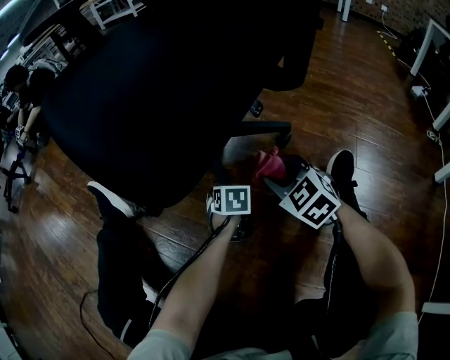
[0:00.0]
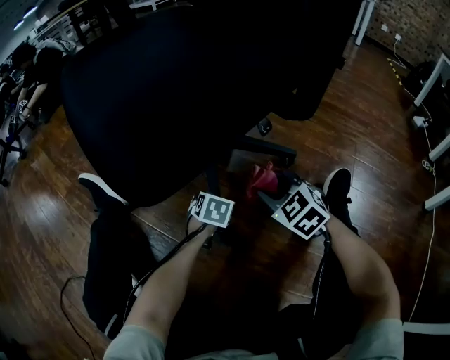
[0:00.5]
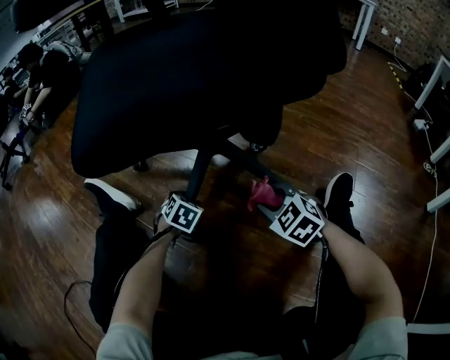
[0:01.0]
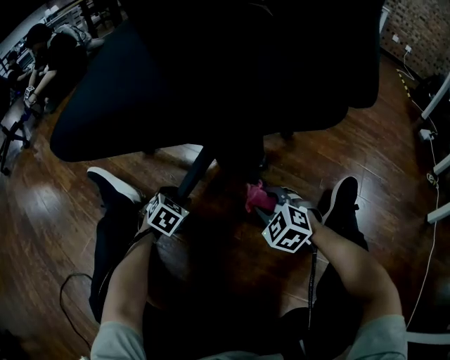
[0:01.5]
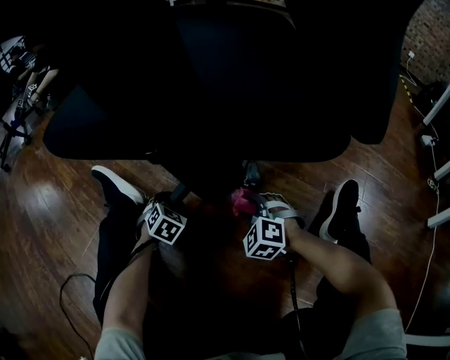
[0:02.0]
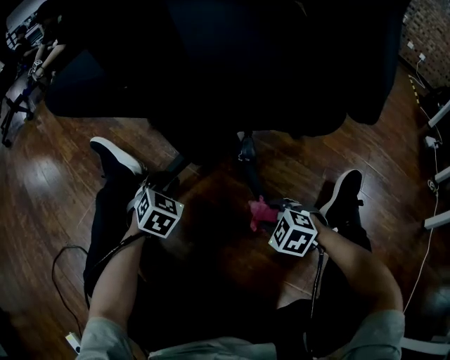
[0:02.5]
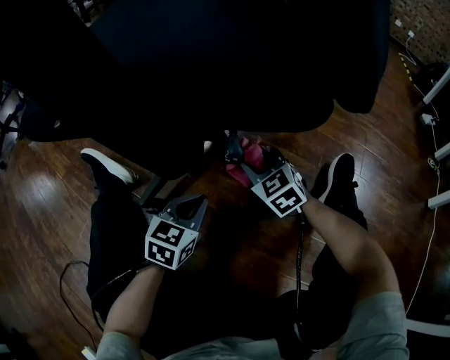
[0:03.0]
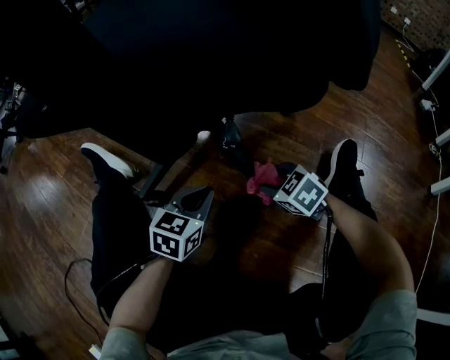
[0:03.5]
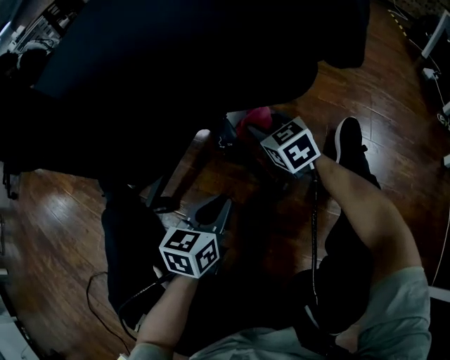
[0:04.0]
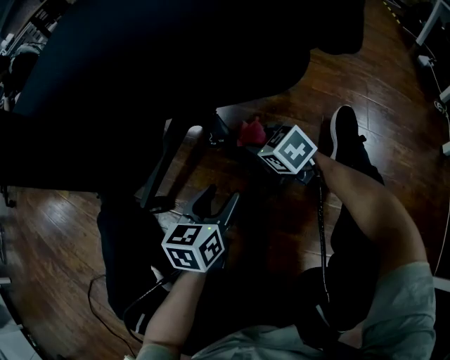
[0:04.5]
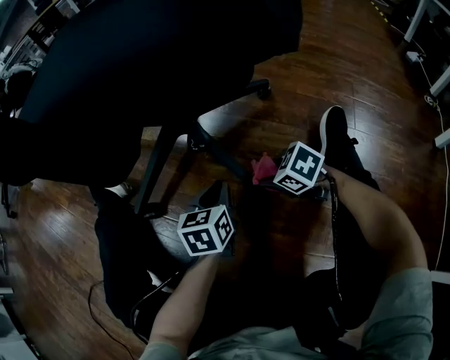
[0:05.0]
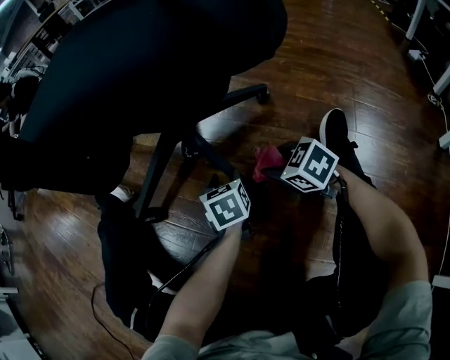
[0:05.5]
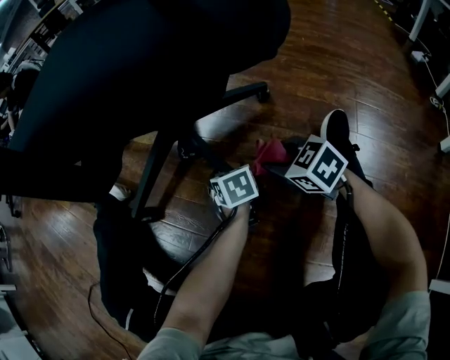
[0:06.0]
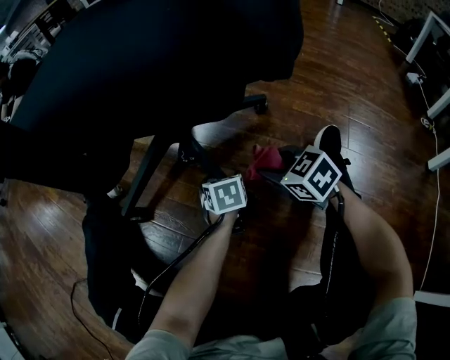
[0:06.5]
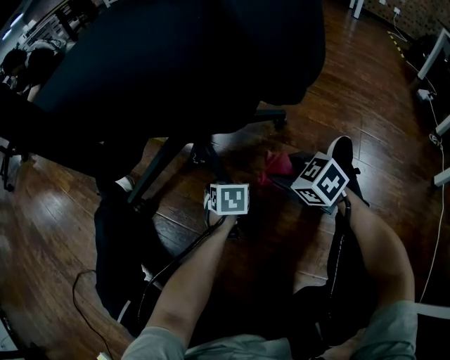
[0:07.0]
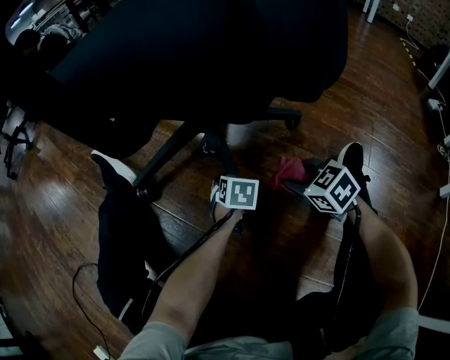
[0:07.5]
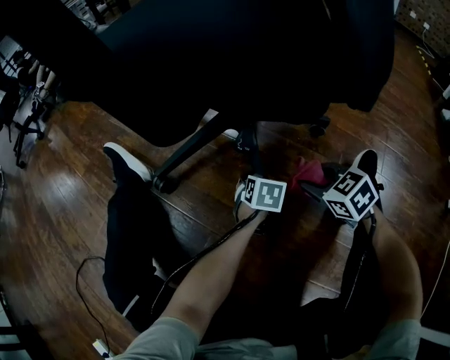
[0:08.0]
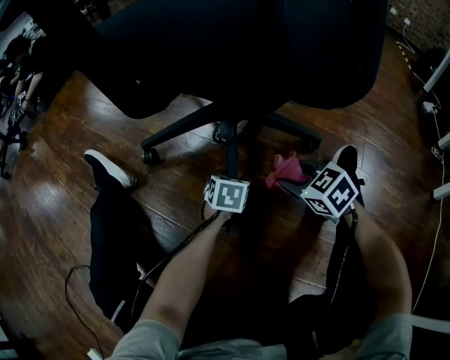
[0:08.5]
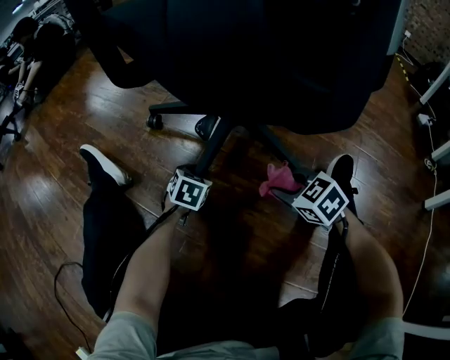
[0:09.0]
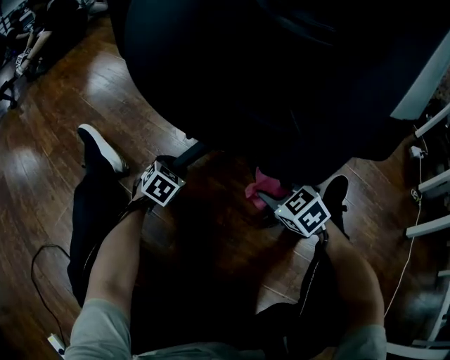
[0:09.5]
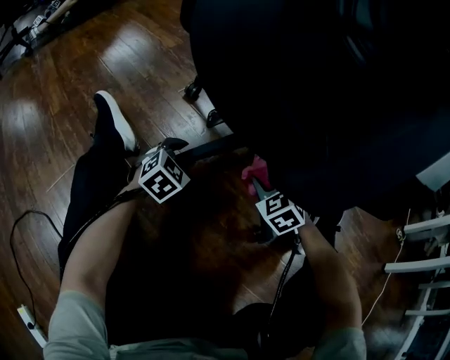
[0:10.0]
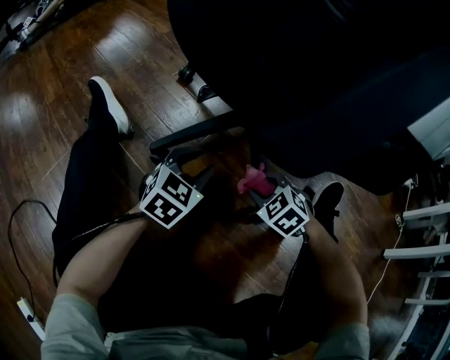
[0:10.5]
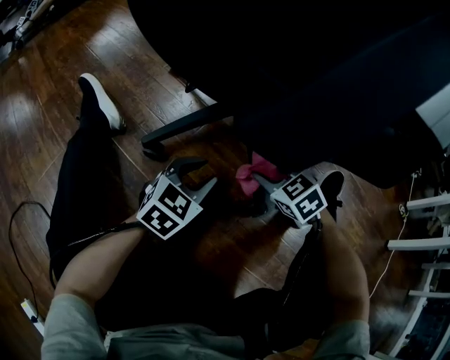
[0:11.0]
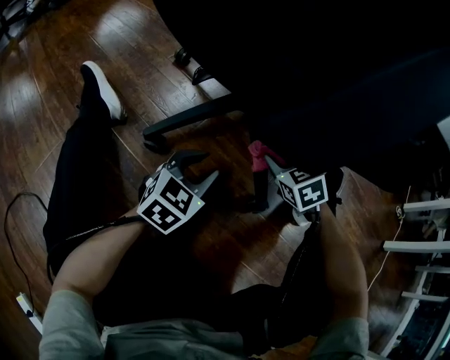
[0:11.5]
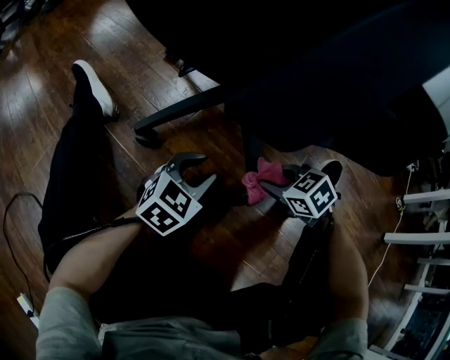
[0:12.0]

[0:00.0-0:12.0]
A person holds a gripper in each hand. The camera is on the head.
0:00.0 to 0:02.0: The left gripper heads to the left, covering about 25 cm, and swivels some 30 degrees. Meanwhile the right gripper heads to the left and downward, covering about 20 cm, and turns by some 30 degrees.
0:02.0 to 0:04.0: The right gripper swings up and down, some 10 cm each way, with 2 reversals, and rotates around the line of its fingers by about 50 degrees, clockwise from behind, while the left gripper ends up approximately 25 cm from where it was, turns by approximately 50 degrees, and closes its fingers.
0:04.0 to 0:06.0: The left gripper moves some 15 cm, changes its angle by about 40 degrees, and opens up. Meanwhile the right gripper moves about 10 cm downward and comes back, and rotates some 20 degrees.
0:06.0 to 0:08.0: There are only small adjustments of the grippers.
0:08.0 to 0:10.0: The left gripper moves to the left, roughly 20 cm, rotates roughly 30 degrees, and closes; the right gripper heads to the left and forward, covering approximately 15 cm, and turns by about 30 degrees.
0:10.0 to 0:12.0: The left gripper travels backward and to the right by roughly 20 cm. The right gripper moves forward and backward over approximately 10 cm, changing direction 2 times, and turns by some 30 degrees.

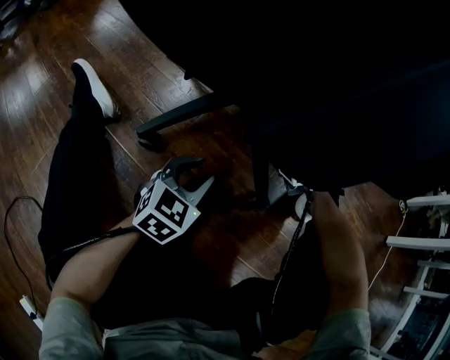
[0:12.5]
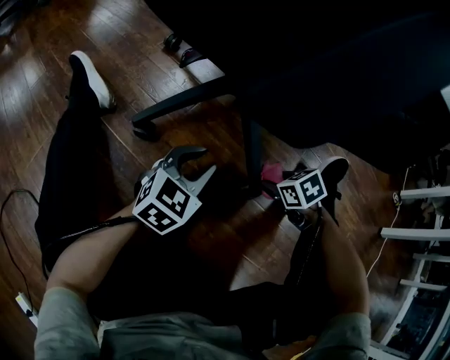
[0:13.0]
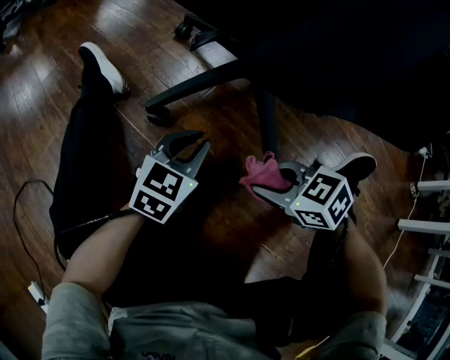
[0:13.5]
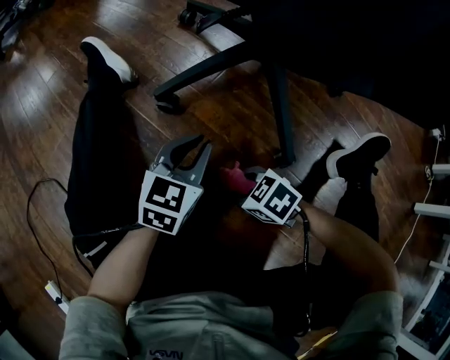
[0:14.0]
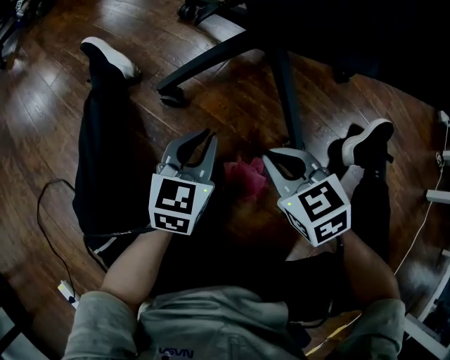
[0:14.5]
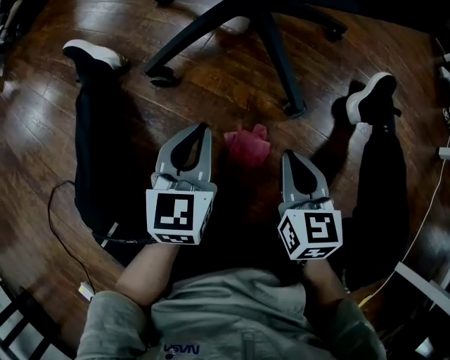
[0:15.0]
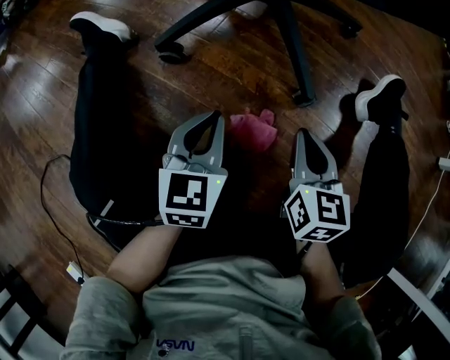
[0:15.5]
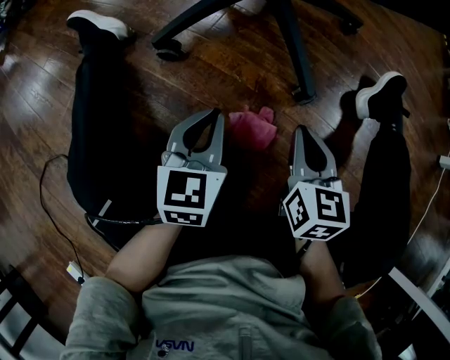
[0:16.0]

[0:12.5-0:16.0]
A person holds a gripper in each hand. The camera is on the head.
0:12.5 to 0:14.5: The right gripper moves up and down over approximately 15 cm, changing direction 3 times, and closes up, while the left gripper shifts by roughly 10 cm, and rotates approximately 20 degrees.
0:14.5 to 0:16.0: The left gripper shifts roughly 5 cm backward. Meanwhile the right gripper is displaced to the right by about 5 cm, and changes its angle by about 40 degrees.

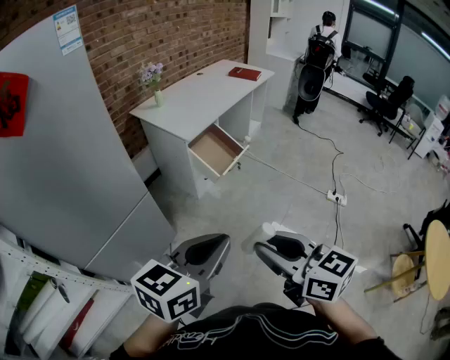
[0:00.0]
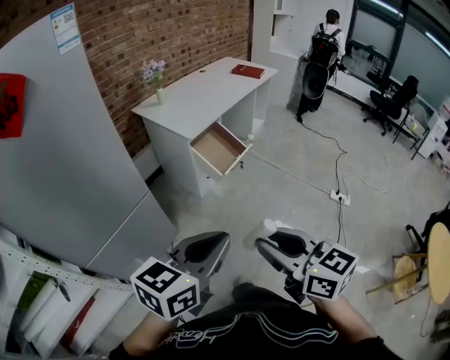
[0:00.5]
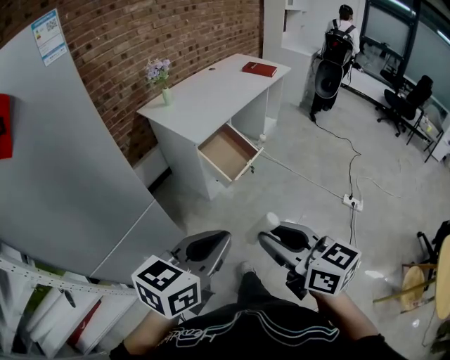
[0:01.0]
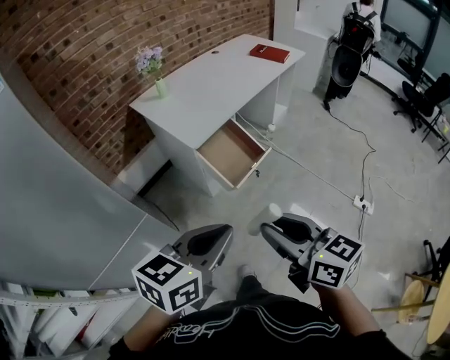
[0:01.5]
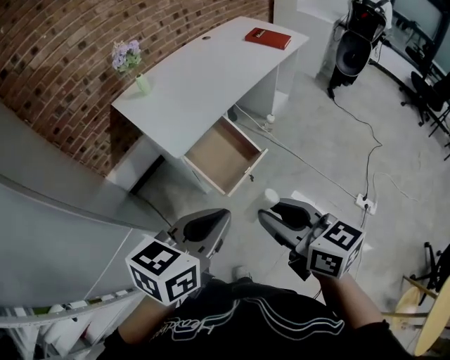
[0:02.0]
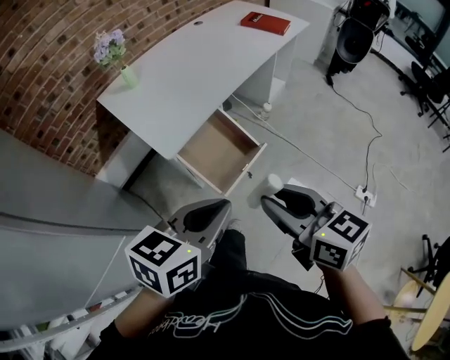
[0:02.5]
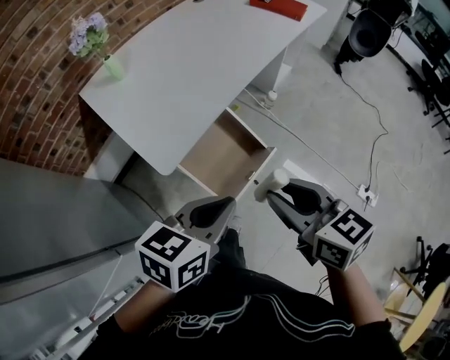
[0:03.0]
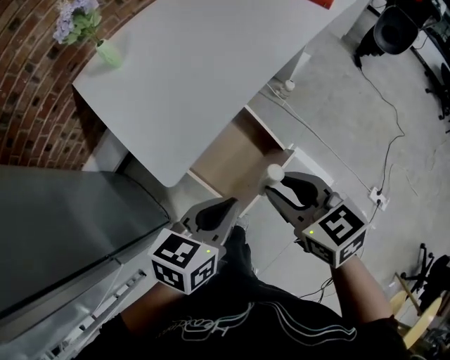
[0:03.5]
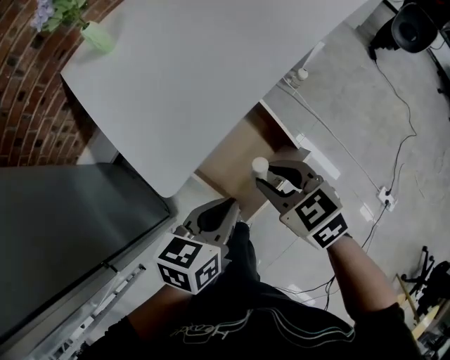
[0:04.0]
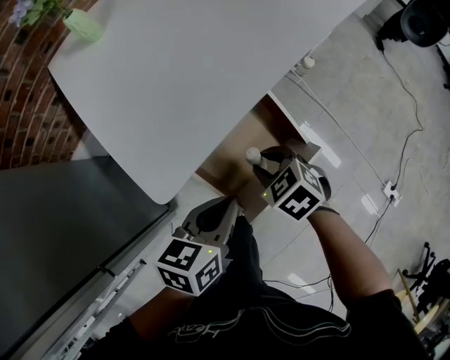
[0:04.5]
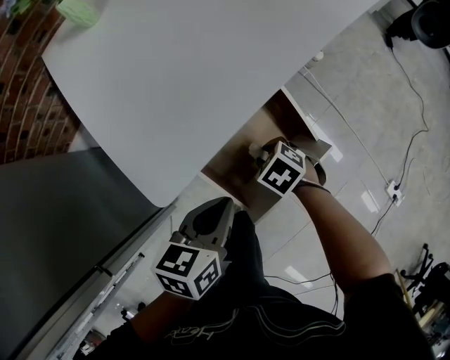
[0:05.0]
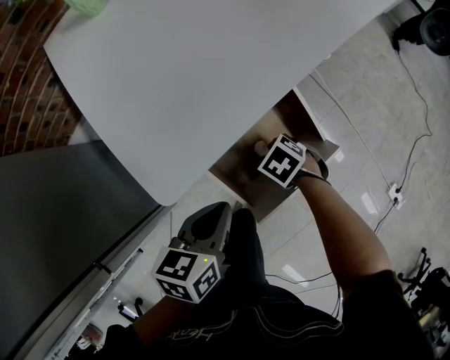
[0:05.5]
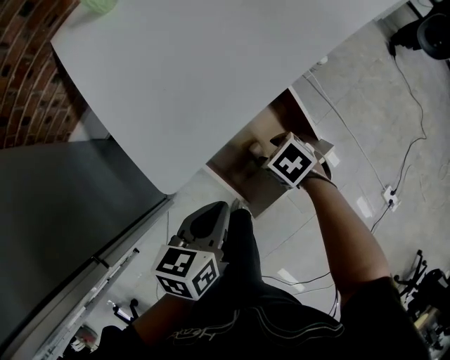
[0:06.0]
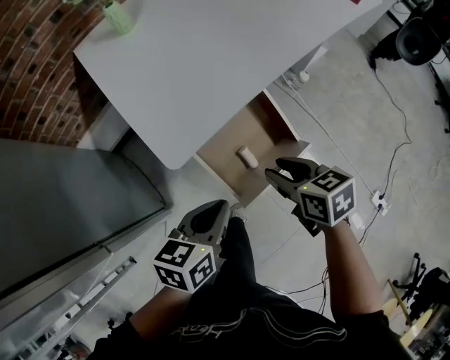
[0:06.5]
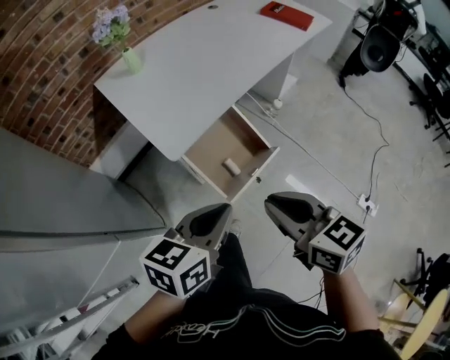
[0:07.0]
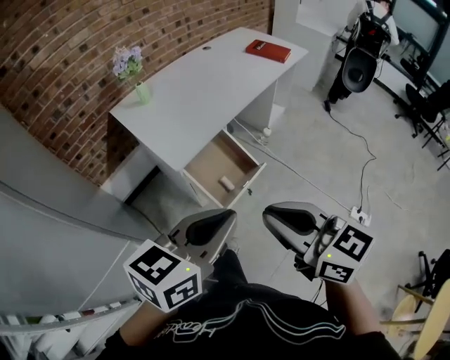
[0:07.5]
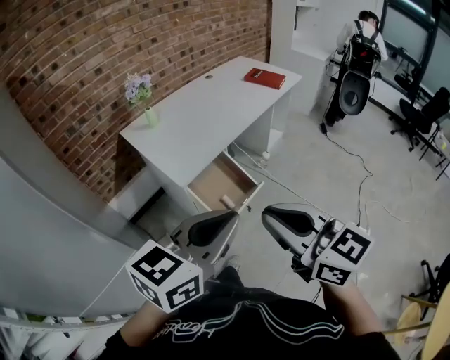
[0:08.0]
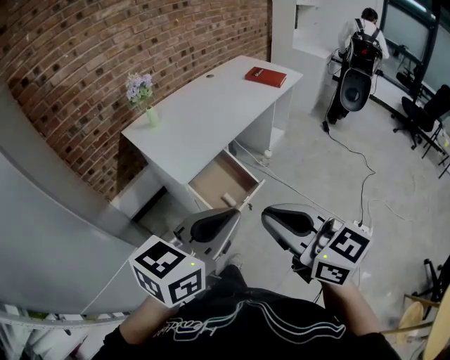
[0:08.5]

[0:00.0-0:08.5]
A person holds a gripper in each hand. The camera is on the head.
0:00.0 to 0:02.0: The pair of grippers is taken forward, approximately 50 cm.
0:02.0 to 0:04.0: The two grippers go approximately 50 cm forward and downward. The right gripper points its fingers some 30 degrees further downward; the left gripper changes its angle by approximately 20 degrees.
0:04.0 to 0:06.5: The right gripper travels downward and back again, roughly 25 cm each way, and turns by some 20 degrees. The left gripper travels downward and back again, some 10 cm each way.
0:06.5 to 0:08.5: The grippers both shift upward and backward by some 50 cm. The left gripper turns by some 40 degrees. Meanwhile the right gripper tips its fingers upward by approximately 40 degrees, and closes up.

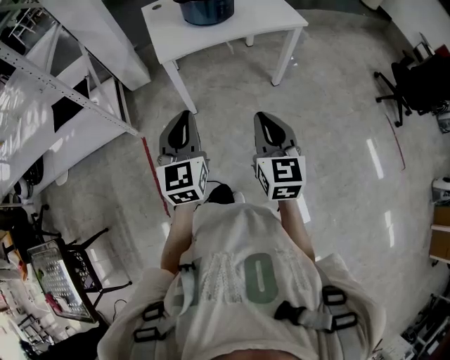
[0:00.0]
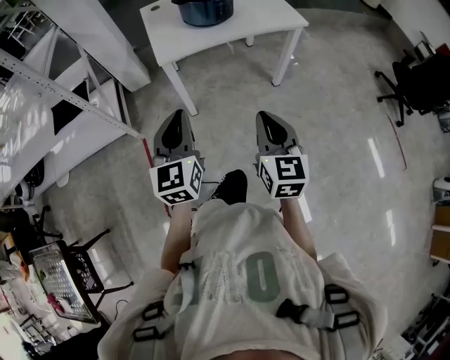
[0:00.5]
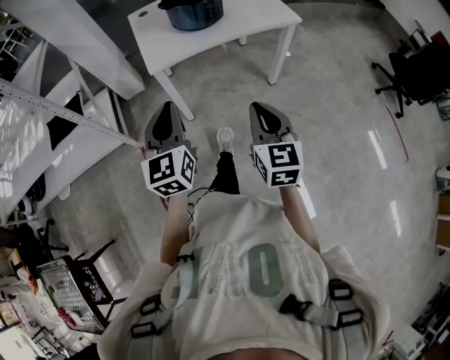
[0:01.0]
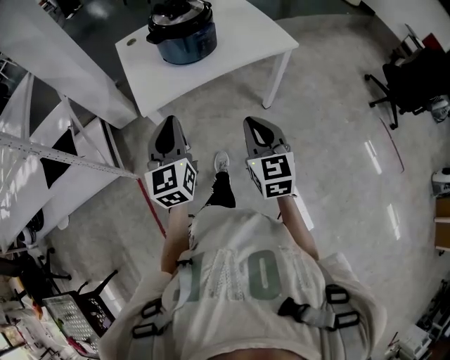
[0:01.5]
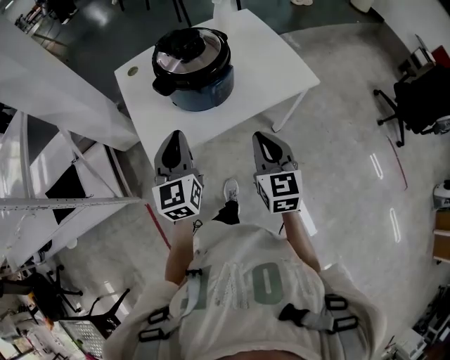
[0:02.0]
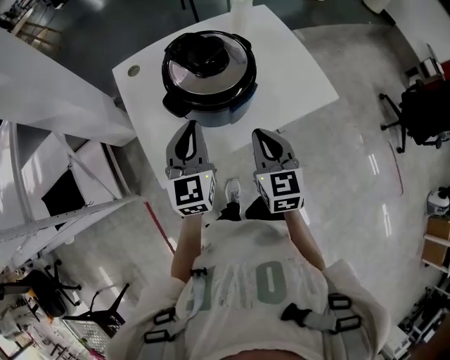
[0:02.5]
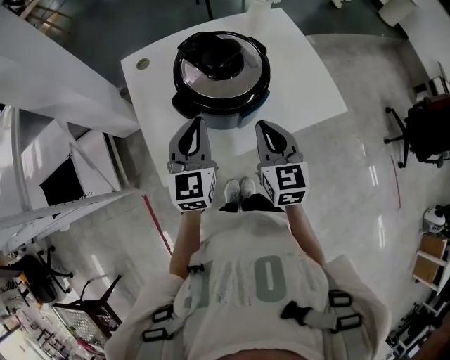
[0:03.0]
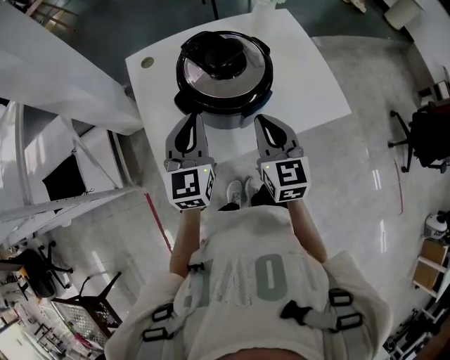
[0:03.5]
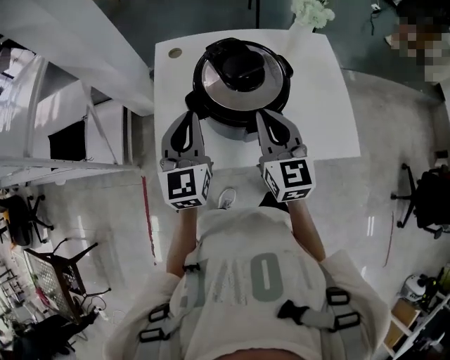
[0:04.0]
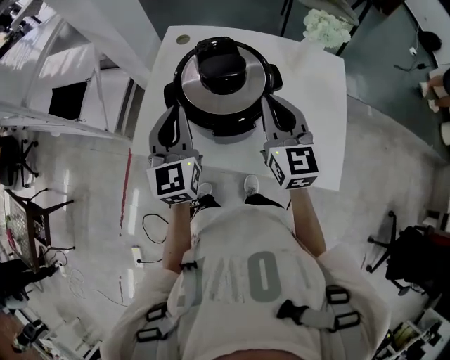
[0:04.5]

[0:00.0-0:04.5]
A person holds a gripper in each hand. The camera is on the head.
0:00.0 to 0:02.0: The pair of grippers is taken forward, some 40 cm.
0:02.0 to 0:04.5: The right gripper moves about 30 cm, and changes its angle by approximately 40 degrees; the left gripper ends up approximately 15 cm from where it was, and rotates some 40 degrees.
